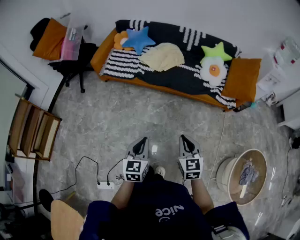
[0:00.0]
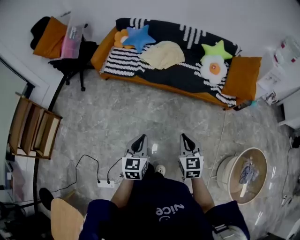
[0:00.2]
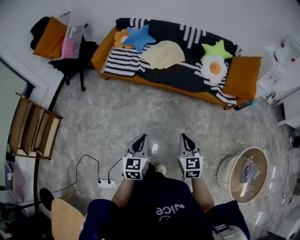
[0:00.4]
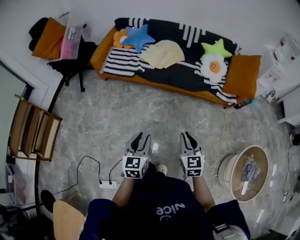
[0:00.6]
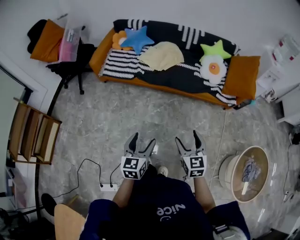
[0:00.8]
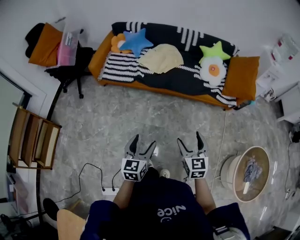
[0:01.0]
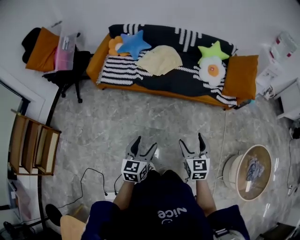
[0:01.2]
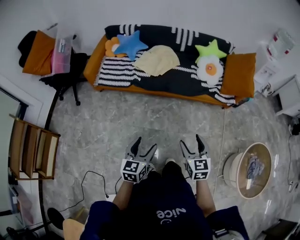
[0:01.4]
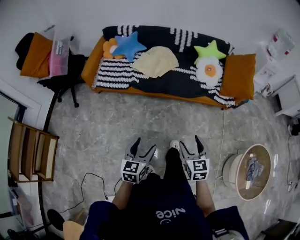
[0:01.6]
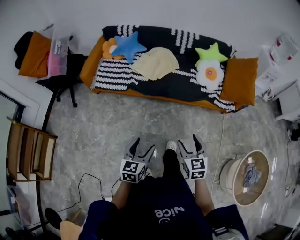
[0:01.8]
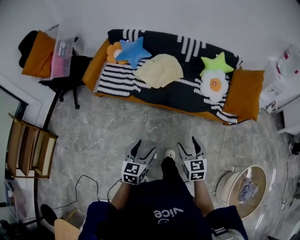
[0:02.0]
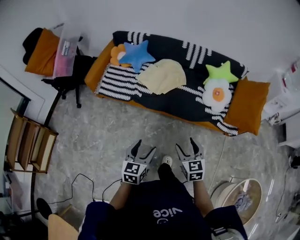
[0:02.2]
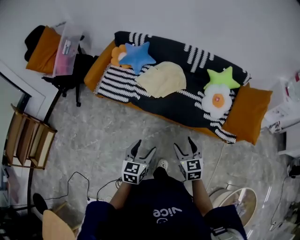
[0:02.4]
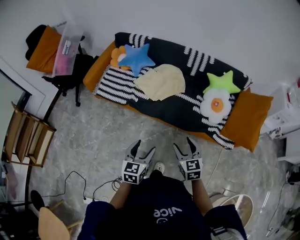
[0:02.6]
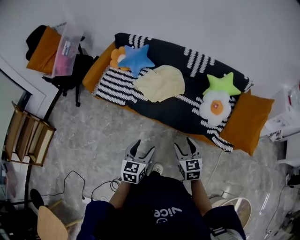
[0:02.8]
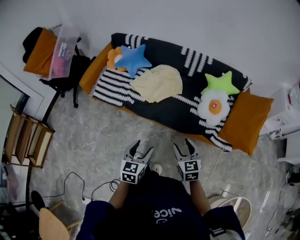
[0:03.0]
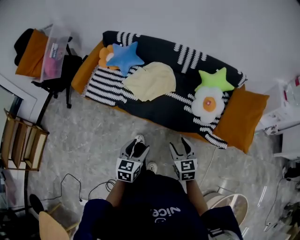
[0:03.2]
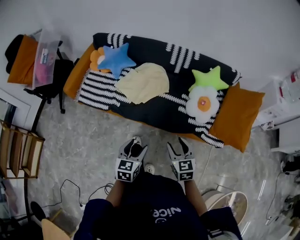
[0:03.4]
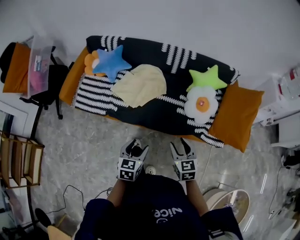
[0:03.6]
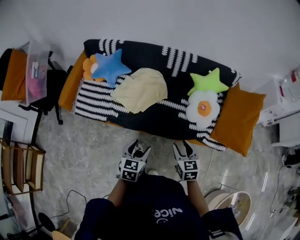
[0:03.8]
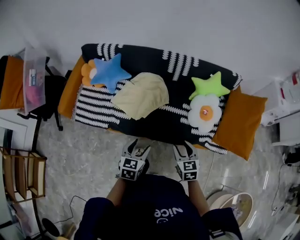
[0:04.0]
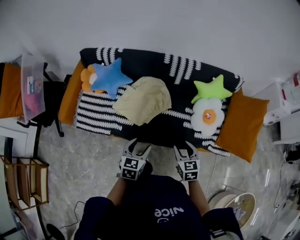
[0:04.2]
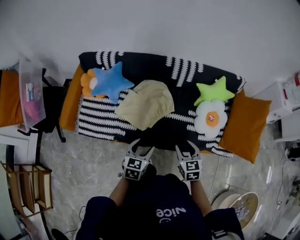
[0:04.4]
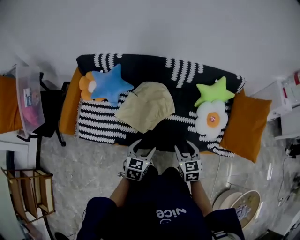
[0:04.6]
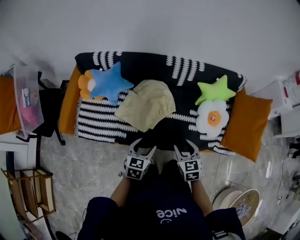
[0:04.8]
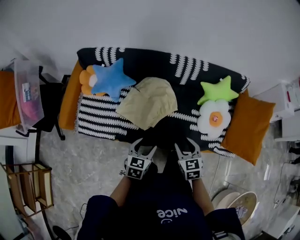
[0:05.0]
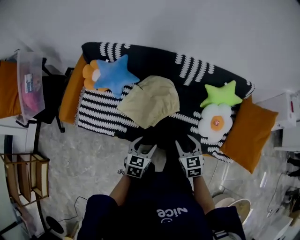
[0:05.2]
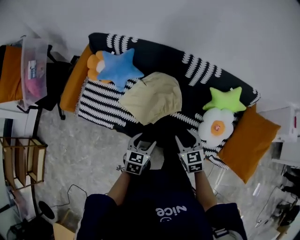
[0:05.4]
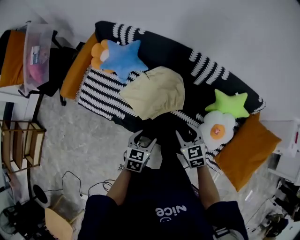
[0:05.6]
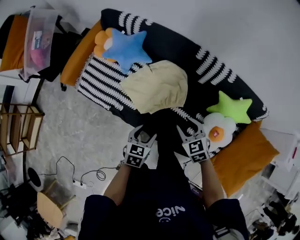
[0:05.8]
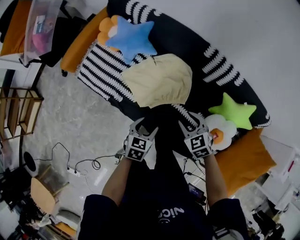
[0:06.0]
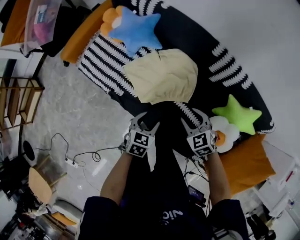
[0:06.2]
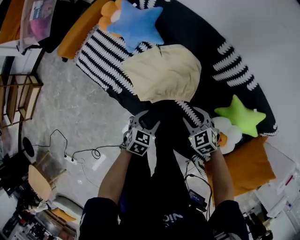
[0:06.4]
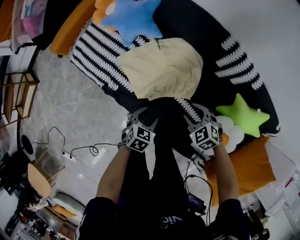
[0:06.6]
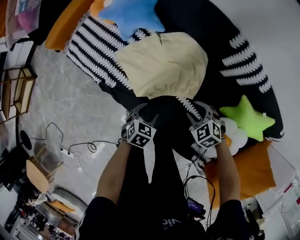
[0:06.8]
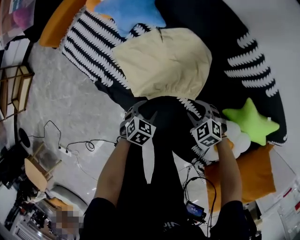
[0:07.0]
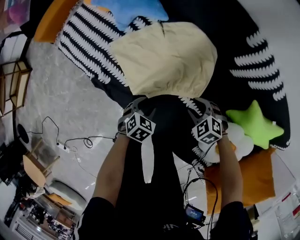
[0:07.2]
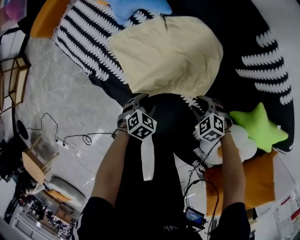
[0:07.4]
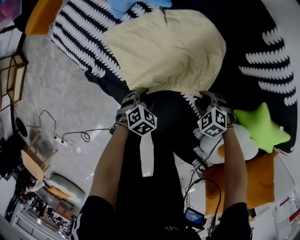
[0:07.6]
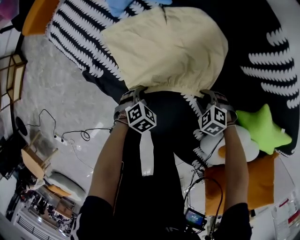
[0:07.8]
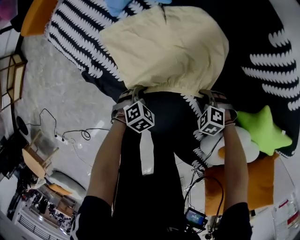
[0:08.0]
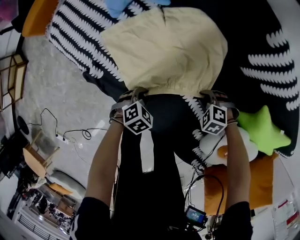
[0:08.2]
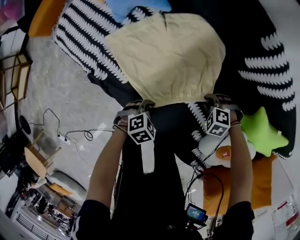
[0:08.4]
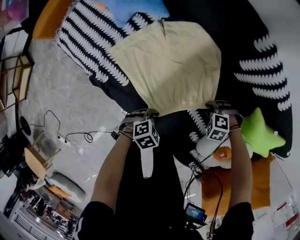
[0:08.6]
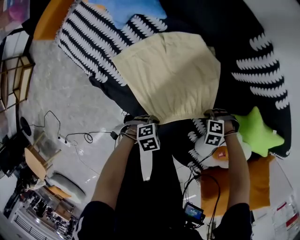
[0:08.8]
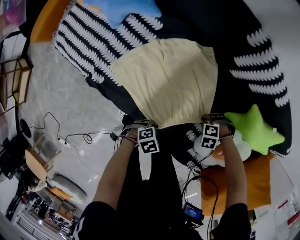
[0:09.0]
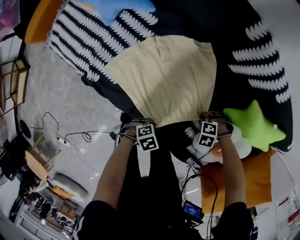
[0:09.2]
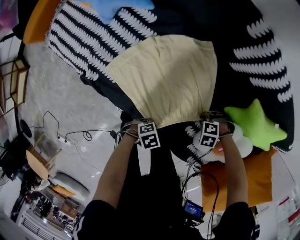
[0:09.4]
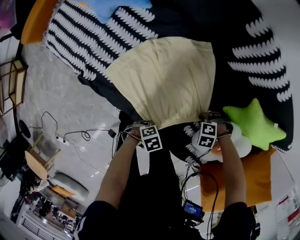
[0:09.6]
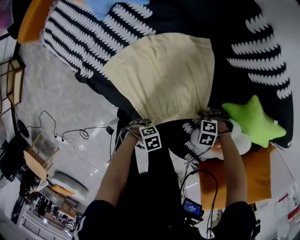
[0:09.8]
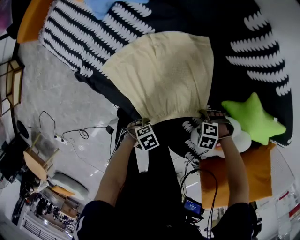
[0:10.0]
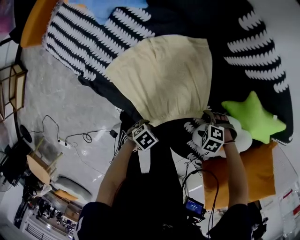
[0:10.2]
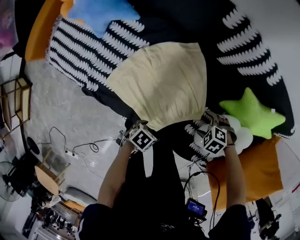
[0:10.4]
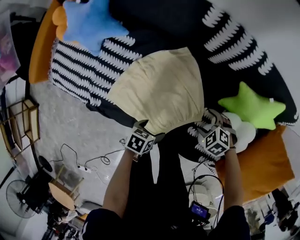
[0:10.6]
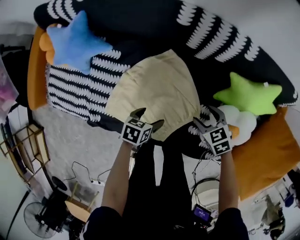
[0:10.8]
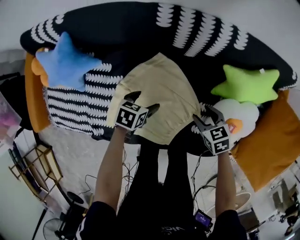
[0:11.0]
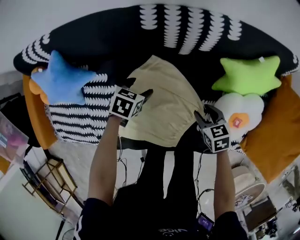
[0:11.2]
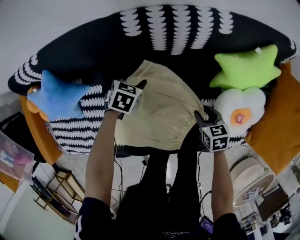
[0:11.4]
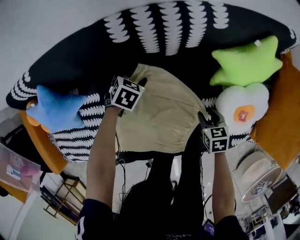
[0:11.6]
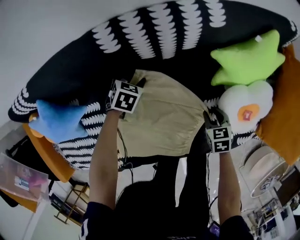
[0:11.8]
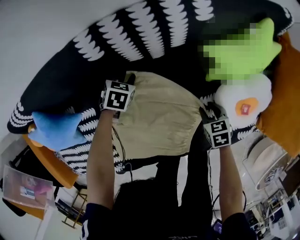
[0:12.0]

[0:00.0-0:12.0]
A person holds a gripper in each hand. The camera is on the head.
0:00.0 to 0:01.6: Both grippers move forward, about 5 cm. The right gripper opens up; the left gripper opens up.
0:01.6 to 0:03.0: Both grippers move forward and to the right, some 30 cm.
0:03.0 to 0:04.4: The two grippers go about 25 cm forward.
0:04.4 to 0:06.0: The right gripper changes place by approximately 20 cm, and swivels approximately 50 degrees; the left gripper shifts by about 15 cm, and turns by roughly 30 degrees.
0:06.0 to 0:07.6: Both grippers move downward, roughly 30 cm. The left gripper changes its angle by some 30 degrees. The right gripper swivels approximately 40 degrees.
0:07.6 to 0:09.0: The right gripper shifts by approximately 15 cm, and changes its angle by about 30 degrees. The left gripper shifts by approximately 15 cm, and turns by roughly 40 degrees.
0:09.0 to 0:10.4: The right gripper changes place by roughly 5 cm, turns by roughly 30 degrees, and opens, while the left gripper swivels about 30 degrees, and opens its fingers.
0:10.4 to 0:12.0: The right gripper reaches about 10 cm upward, then returns, rotates around the line of its fingers by roughly 90 degrees, clockwise from behind, and closes up, while the left gripper ends up approximately 50 cm from where it was, rotates around the line of its fingers by roughly 50 degrees, clockwise from behind, and closes up.

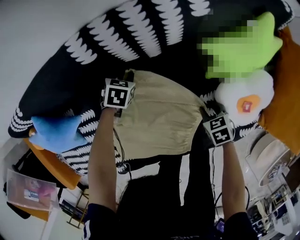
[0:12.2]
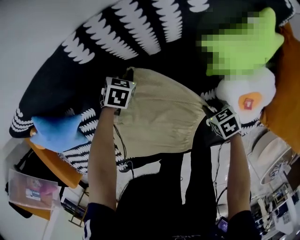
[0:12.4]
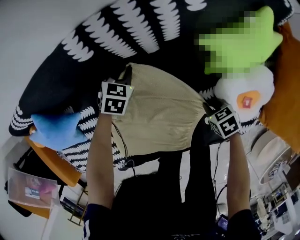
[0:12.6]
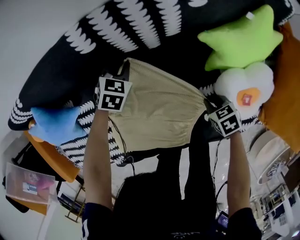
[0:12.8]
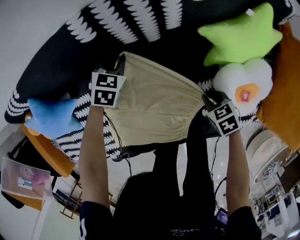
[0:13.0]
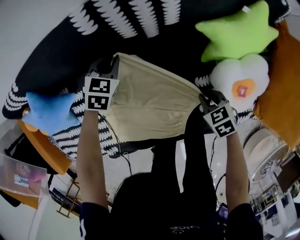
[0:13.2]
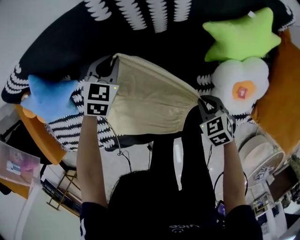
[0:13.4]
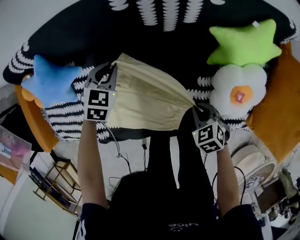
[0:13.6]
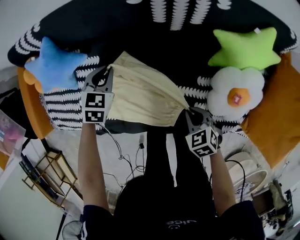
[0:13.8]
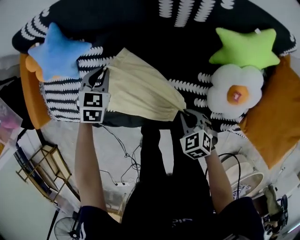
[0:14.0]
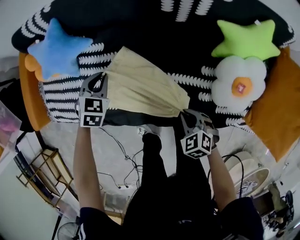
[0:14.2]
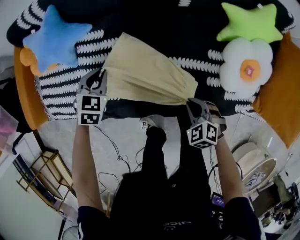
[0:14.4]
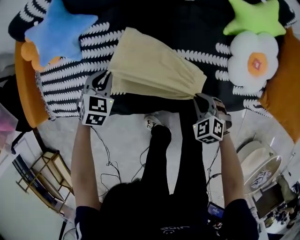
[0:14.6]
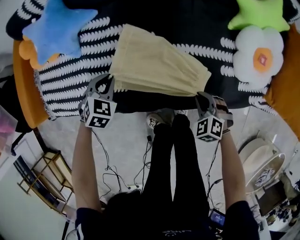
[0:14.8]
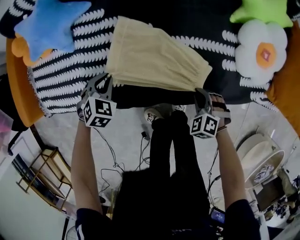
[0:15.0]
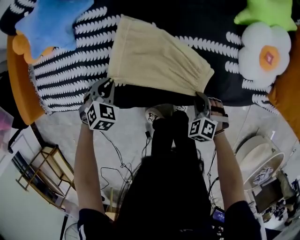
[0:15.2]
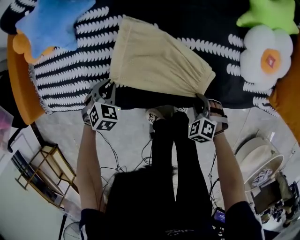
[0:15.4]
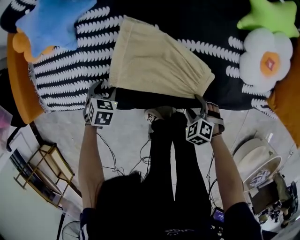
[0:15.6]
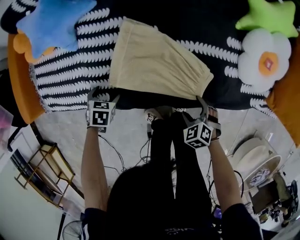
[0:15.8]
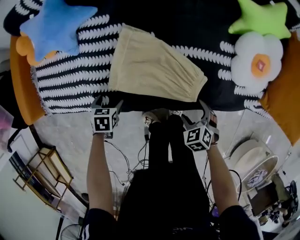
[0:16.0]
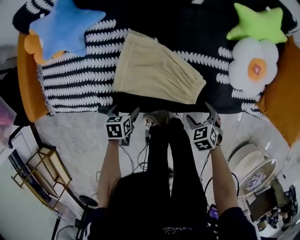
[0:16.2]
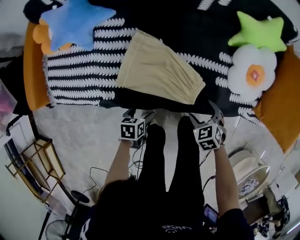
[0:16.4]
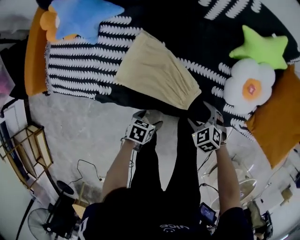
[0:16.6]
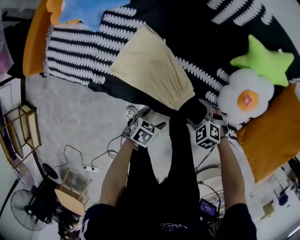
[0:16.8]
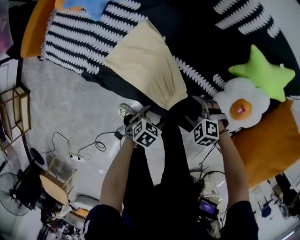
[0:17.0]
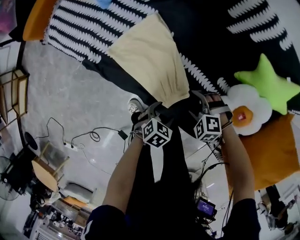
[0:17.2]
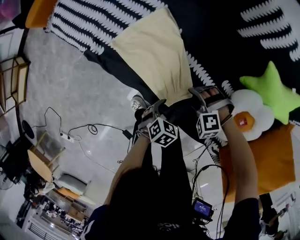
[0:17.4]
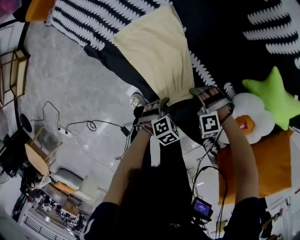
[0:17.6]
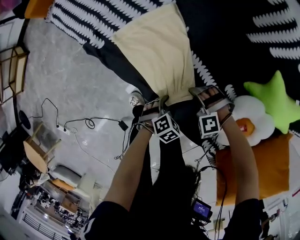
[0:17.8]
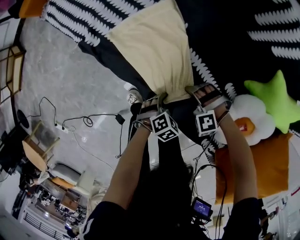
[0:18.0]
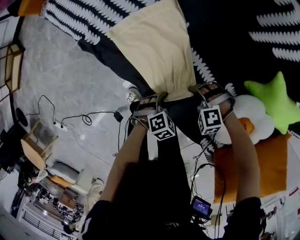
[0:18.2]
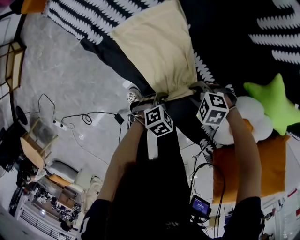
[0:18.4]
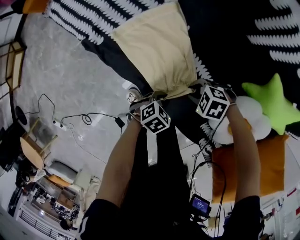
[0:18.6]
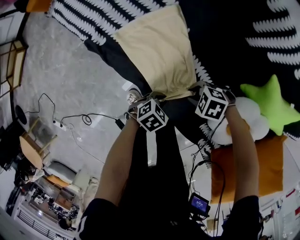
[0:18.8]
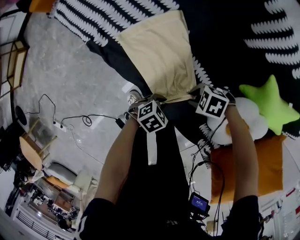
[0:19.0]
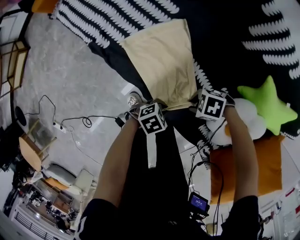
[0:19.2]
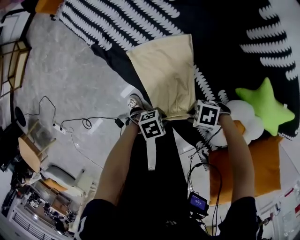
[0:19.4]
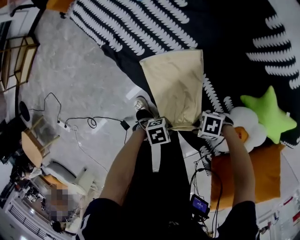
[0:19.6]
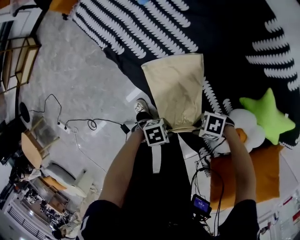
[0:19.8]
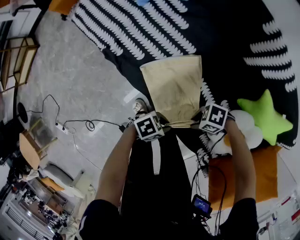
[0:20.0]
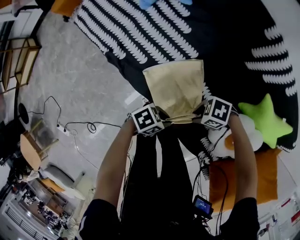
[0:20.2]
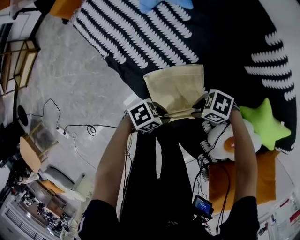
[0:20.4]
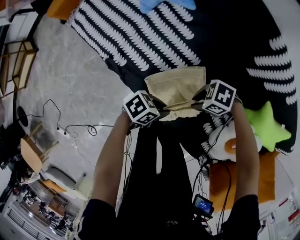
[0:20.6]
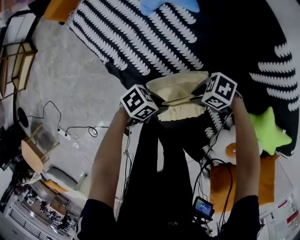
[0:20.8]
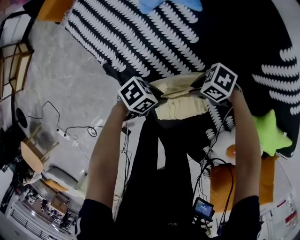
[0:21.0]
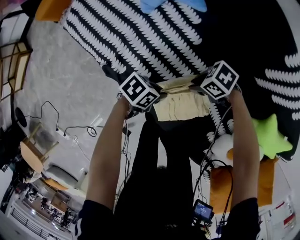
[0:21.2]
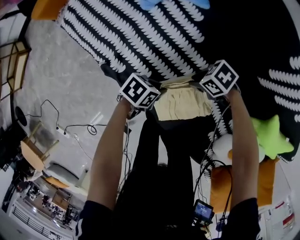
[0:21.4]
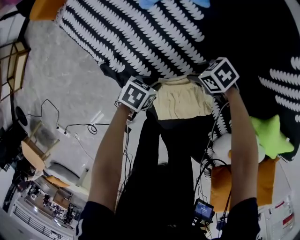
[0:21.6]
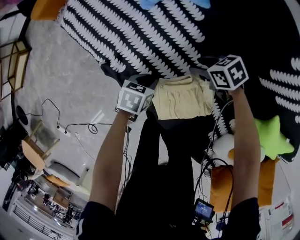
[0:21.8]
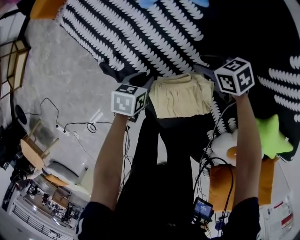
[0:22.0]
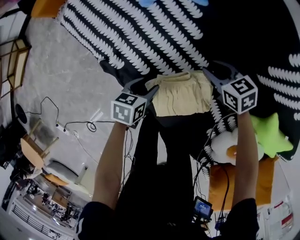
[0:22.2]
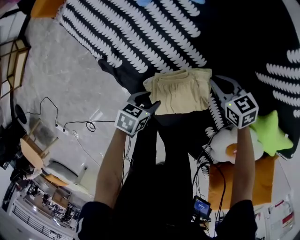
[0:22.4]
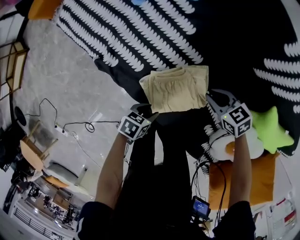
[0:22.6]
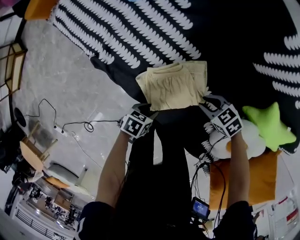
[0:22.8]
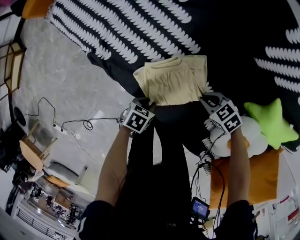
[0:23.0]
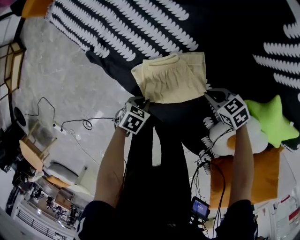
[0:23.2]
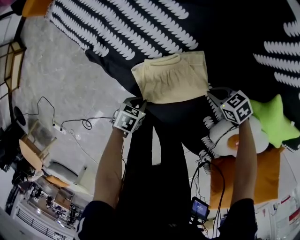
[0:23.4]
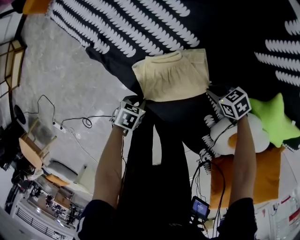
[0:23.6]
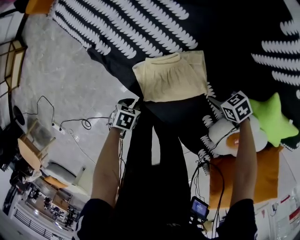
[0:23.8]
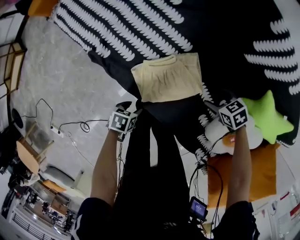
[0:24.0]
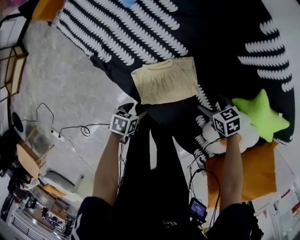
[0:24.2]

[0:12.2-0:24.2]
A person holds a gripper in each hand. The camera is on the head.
0:12.2 to 0:13.8: The left gripper shifts about 25 cm upward, to the left and backward, and changes its angle by about 30 degrees, while the right gripper travels upward, to the left and backward by approximately 15 cm, and turns by some 30 degrees.
0:13.8 to 0:15.2: The left gripper is displaced backward, to the left and downward by about 30 cm, and swivels about 20 degrees. The right gripper shifts about 20 cm backward, downward and to the left, and rotates approximately 30 degrees.
0:15.2 to 0:16.6: The left gripper ends up approximately 25 cm from where it was, rolls counterclockwise, seen from behind, by roughly 50 degrees, and opens its fingers. The right gripper is displaced upward by roughly 10 cm, and opens.
0:16.6 to 0:18.2: The right gripper is displaced downward by about 10 cm, rotates around the line of its fingers by some 80 degrees, counterclockwise from behind, and closes its fingers; the left gripper moves some 20 cm, turns by about 30 degrees, and closes.
0:18.2 to 0:19.8: Both grippers travel together upward, some 10 cm. The left gripper tips its fingers upward by approximately 30 degrees, while the right gripper tips its fingers upward by approximately 30 degrees.
0:19.8 to 0:21.2: Both grippers travel together backward, approximately 30 cm. The left gripper changes its angle by some 30 degrees, while the right gripper rotates roughly 20 degrees.
0:21.2 to 0:22.6: The left gripper moves about 15 cm. The right gripper shifts by approximately 10 cm, and turns by about 40 degrees.
0:22.6 to 0:24.2: The right gripper moves about 10 cm, and opens, while the left gripper closes, then reopens.
